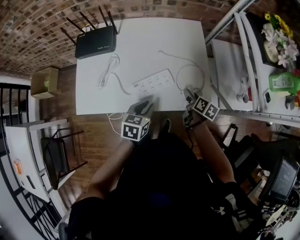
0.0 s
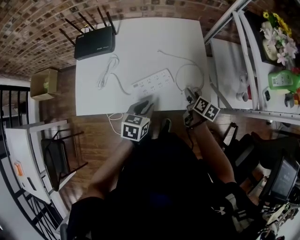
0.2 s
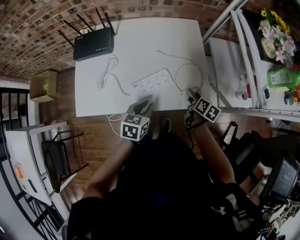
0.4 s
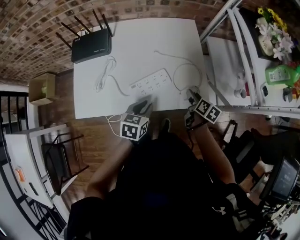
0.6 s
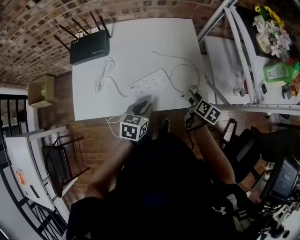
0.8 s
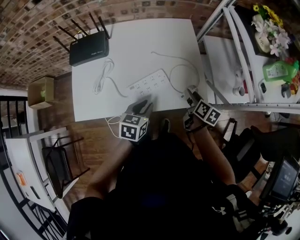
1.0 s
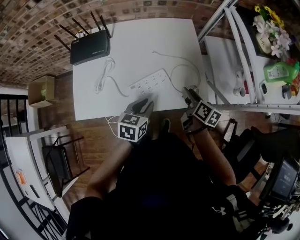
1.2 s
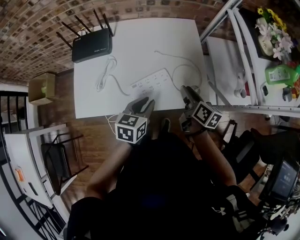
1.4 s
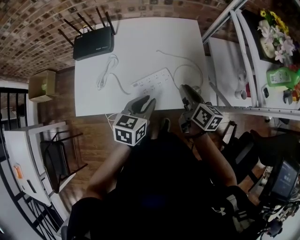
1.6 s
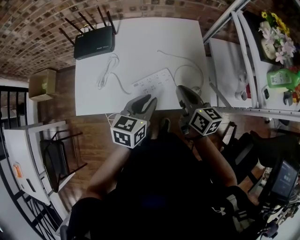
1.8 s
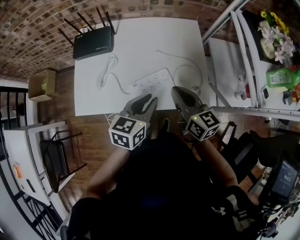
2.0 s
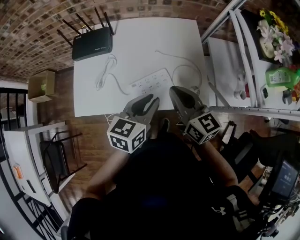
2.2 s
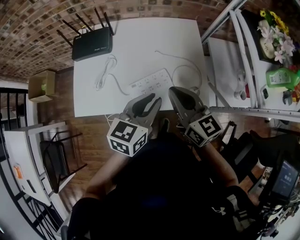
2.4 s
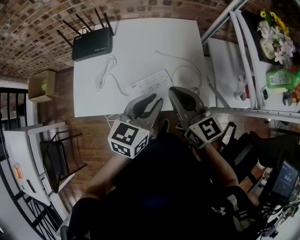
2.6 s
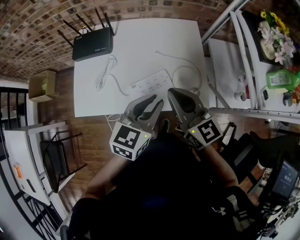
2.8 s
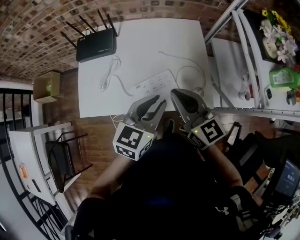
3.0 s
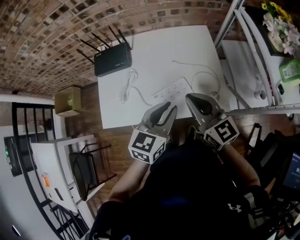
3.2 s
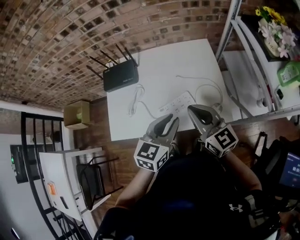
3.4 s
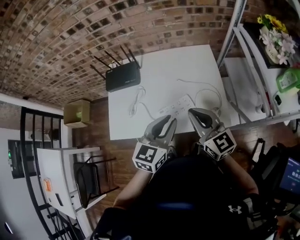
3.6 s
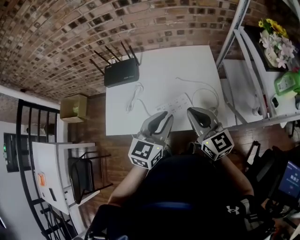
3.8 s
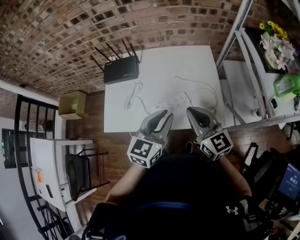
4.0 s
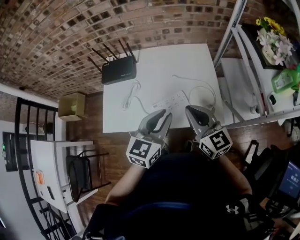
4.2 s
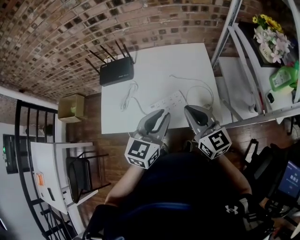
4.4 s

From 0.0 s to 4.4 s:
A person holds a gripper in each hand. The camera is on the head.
From 0.0 s to 1.4 s: The left gripper moves upward, approximately 5 cm; the right gripper goes roughly 10 cm upward, and closes.
From 1.4 s to 3.0 s: The left gripper shifts about 10 cm upward. The right gripper goes about 20 cm upward and to the left, rotates roughly 40 degrees, and closes its fingers.
From 3.0 s to 4.4 s: The grippers stay close to where they were, moving slightly.

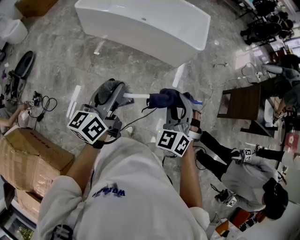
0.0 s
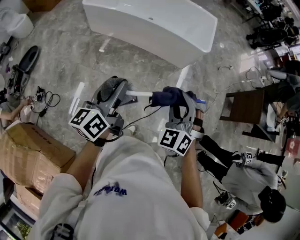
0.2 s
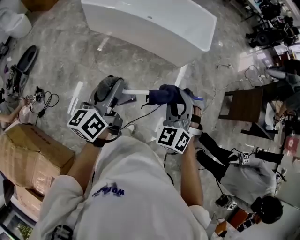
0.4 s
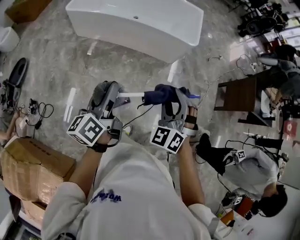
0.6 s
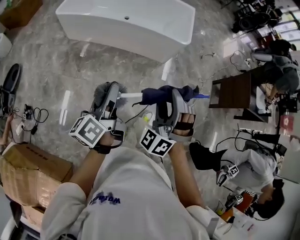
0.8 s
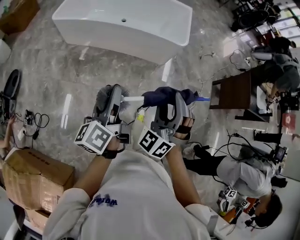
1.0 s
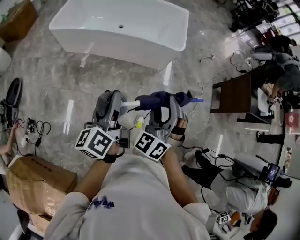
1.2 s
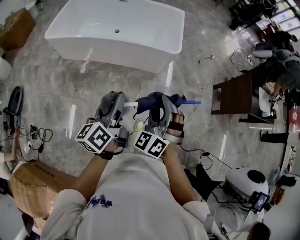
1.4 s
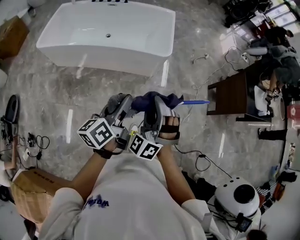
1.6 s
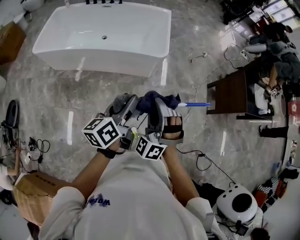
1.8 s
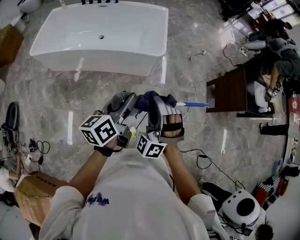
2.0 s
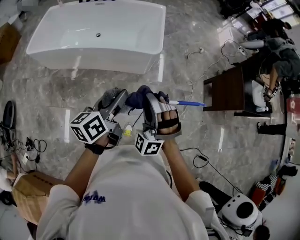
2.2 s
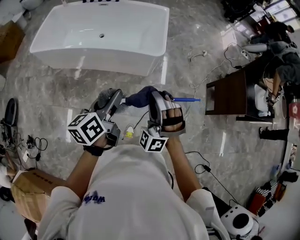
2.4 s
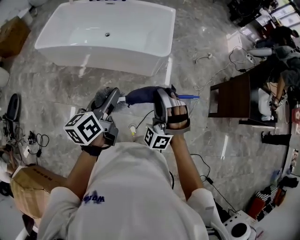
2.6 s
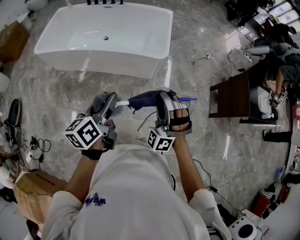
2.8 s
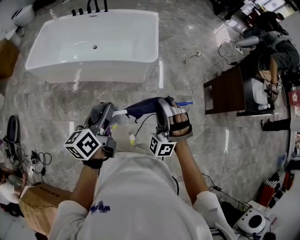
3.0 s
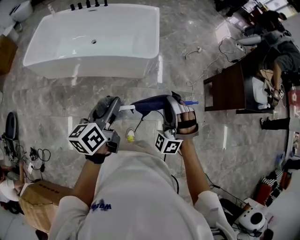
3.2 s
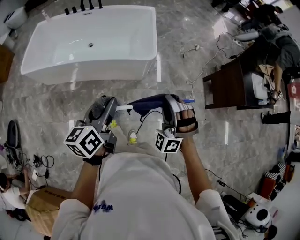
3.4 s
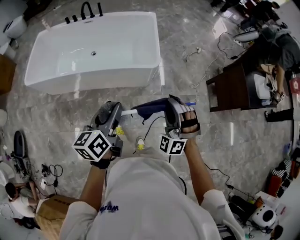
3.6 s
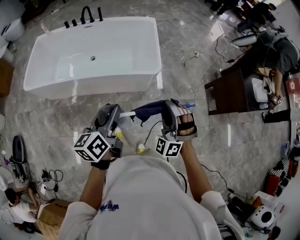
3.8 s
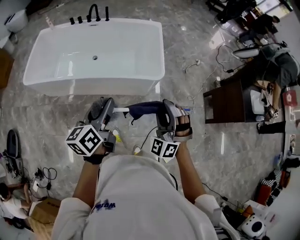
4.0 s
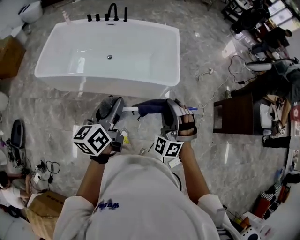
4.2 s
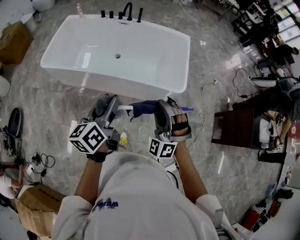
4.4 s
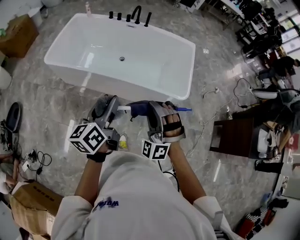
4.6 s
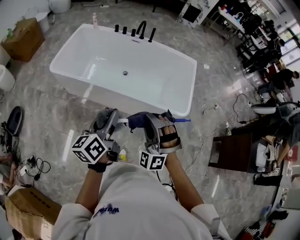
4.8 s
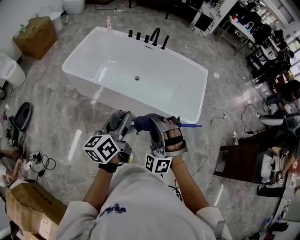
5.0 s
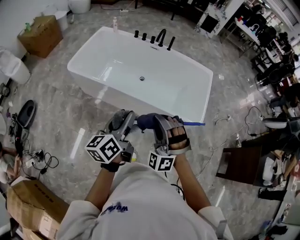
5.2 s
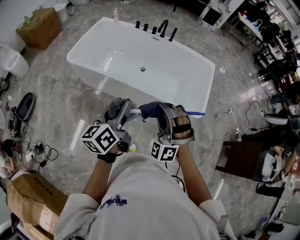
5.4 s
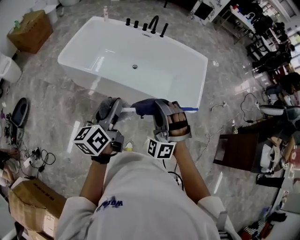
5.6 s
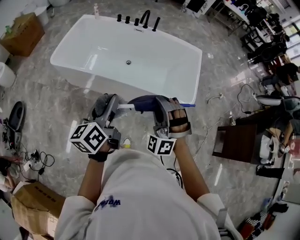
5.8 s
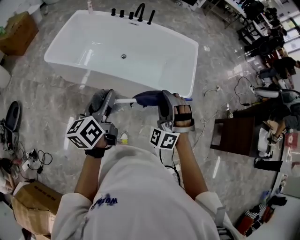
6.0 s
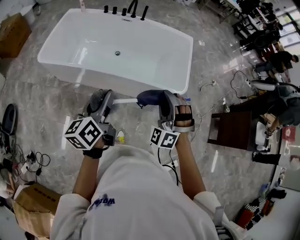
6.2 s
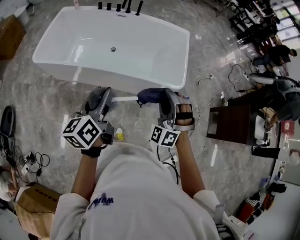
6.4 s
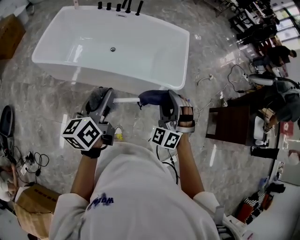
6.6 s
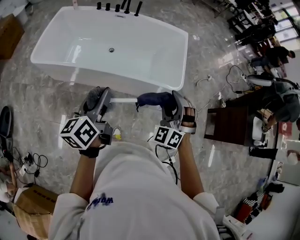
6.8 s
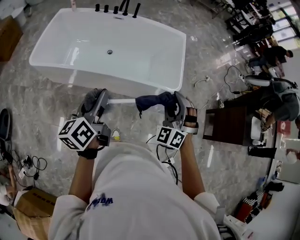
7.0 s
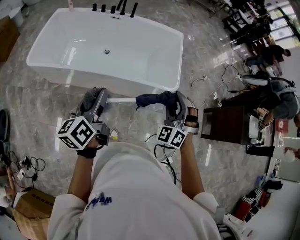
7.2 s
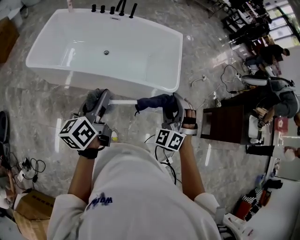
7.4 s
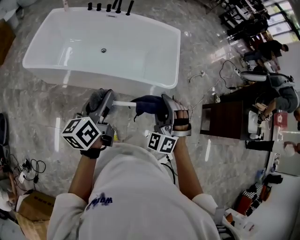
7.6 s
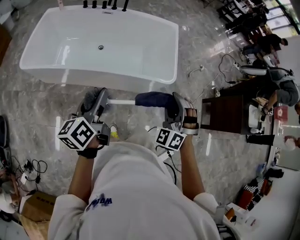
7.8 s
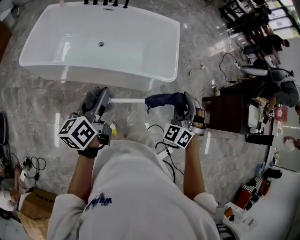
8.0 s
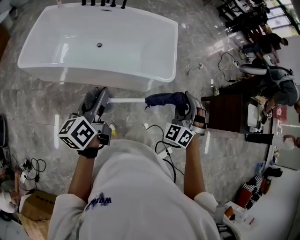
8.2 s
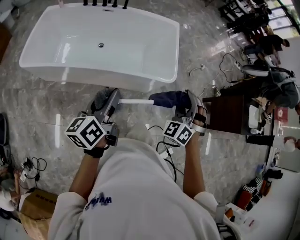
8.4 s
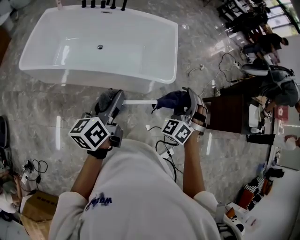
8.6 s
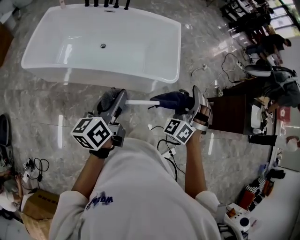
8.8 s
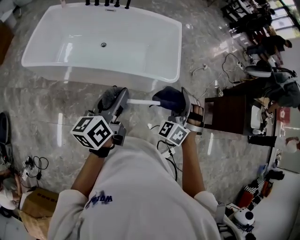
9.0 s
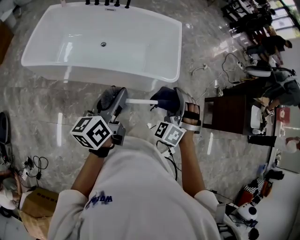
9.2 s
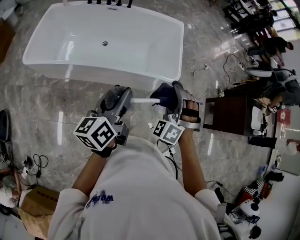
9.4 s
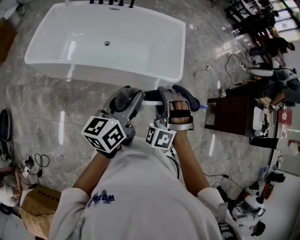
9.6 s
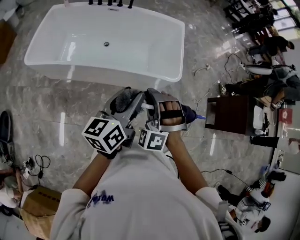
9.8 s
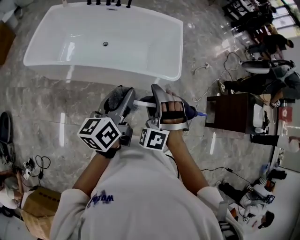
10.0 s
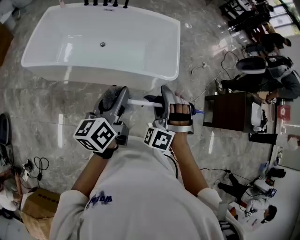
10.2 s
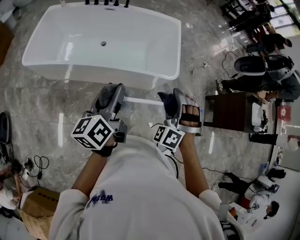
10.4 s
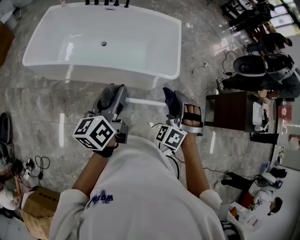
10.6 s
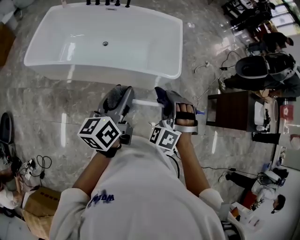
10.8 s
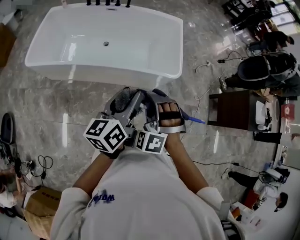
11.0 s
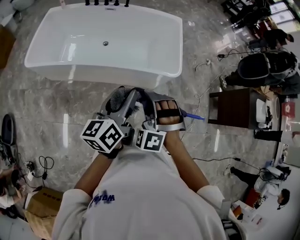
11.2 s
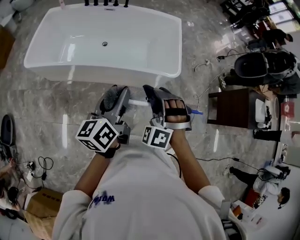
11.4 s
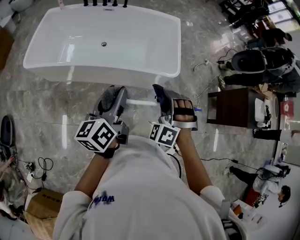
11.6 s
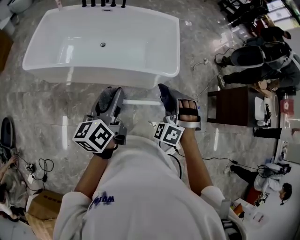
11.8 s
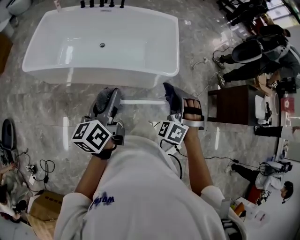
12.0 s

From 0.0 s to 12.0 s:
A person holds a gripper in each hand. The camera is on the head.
From 0.0 s to 1.6 s: The left gripper changes place by approximately 30 cm, and turns by some 20 degrees.
From 1.6 s to 3.0 s: The left gripper changes place by roughly 5 cm.
From 3.0 s to 4.4 s: The left gripper shifts by roughly 25 cm.
From 4.4 s to 6.0 s: The left gripper moves approximately 10 cm.
From 6.0 s to 7.6 s: The left gripper changes place by some 5 cm.
From 7.6 s to 9.0 s: The left gripper ends up roughly 5 cm from where it was.

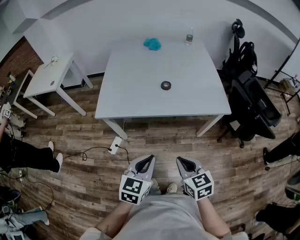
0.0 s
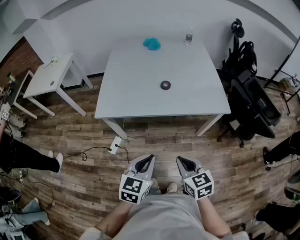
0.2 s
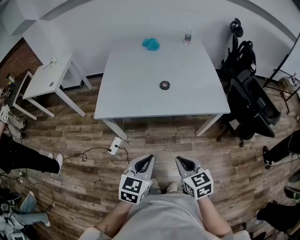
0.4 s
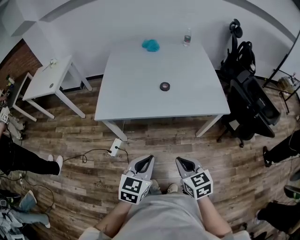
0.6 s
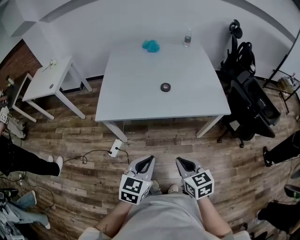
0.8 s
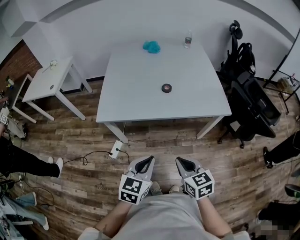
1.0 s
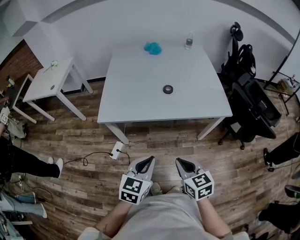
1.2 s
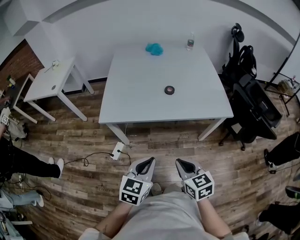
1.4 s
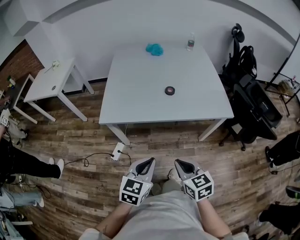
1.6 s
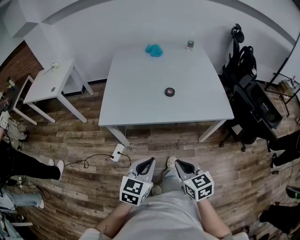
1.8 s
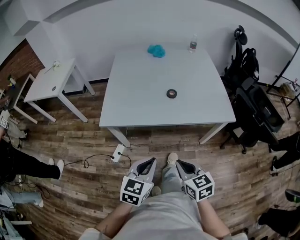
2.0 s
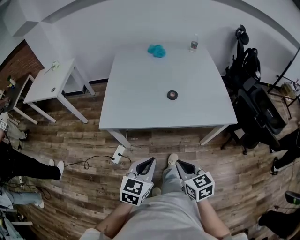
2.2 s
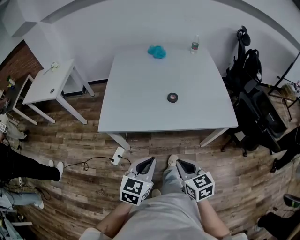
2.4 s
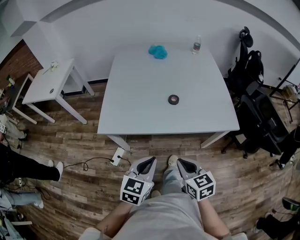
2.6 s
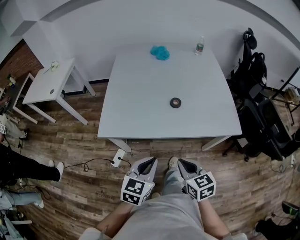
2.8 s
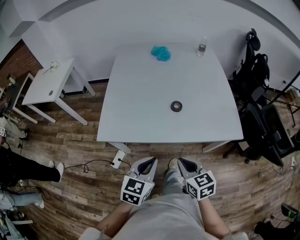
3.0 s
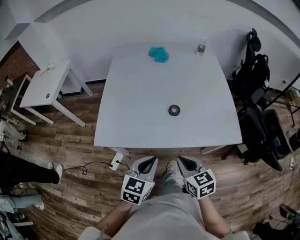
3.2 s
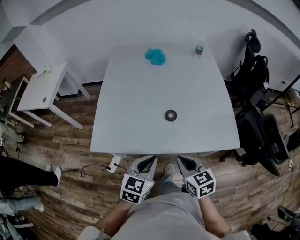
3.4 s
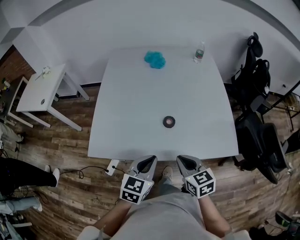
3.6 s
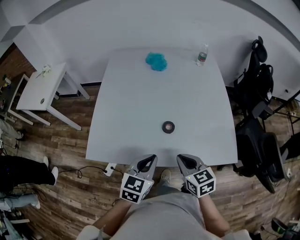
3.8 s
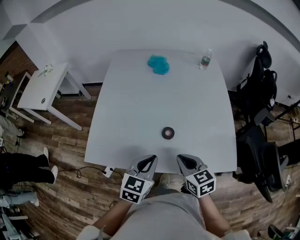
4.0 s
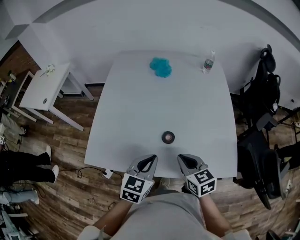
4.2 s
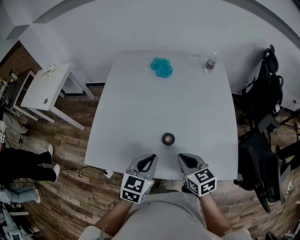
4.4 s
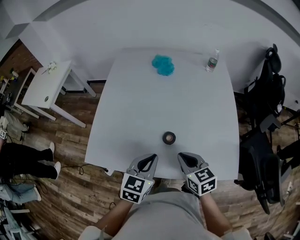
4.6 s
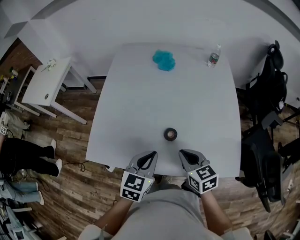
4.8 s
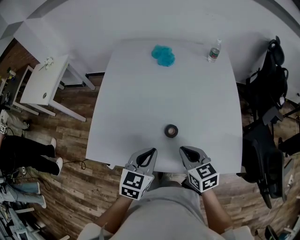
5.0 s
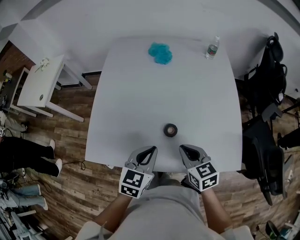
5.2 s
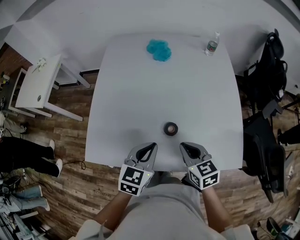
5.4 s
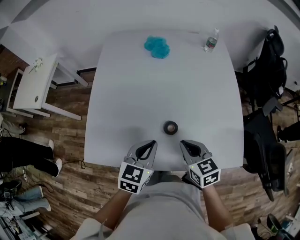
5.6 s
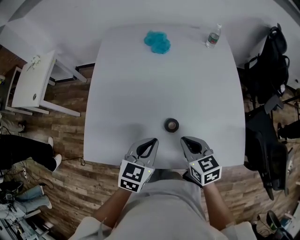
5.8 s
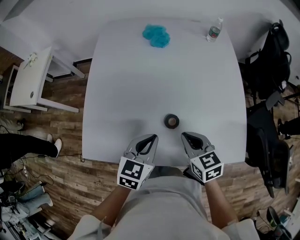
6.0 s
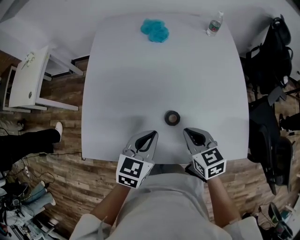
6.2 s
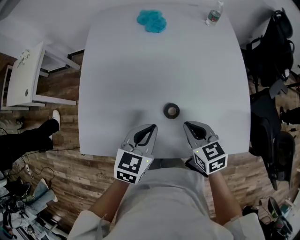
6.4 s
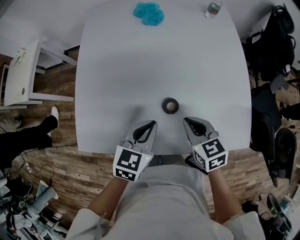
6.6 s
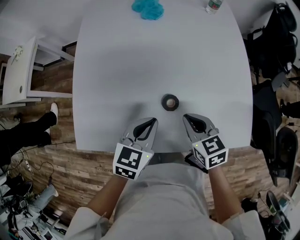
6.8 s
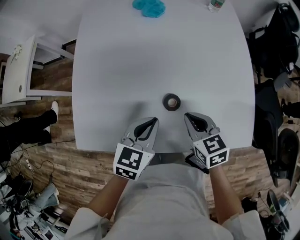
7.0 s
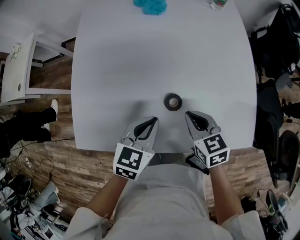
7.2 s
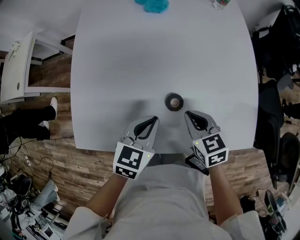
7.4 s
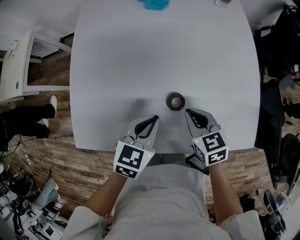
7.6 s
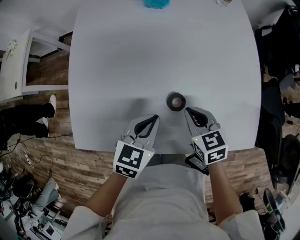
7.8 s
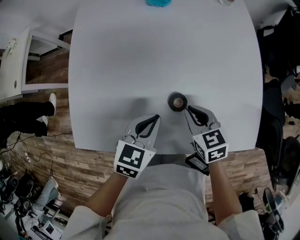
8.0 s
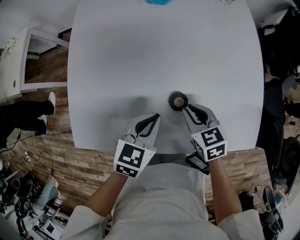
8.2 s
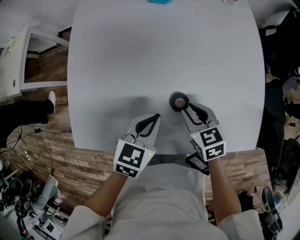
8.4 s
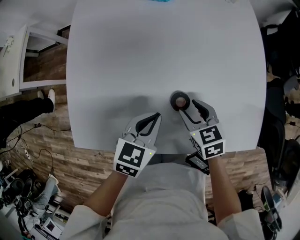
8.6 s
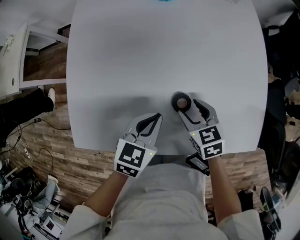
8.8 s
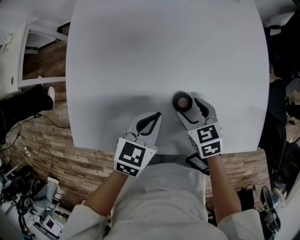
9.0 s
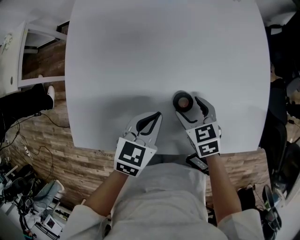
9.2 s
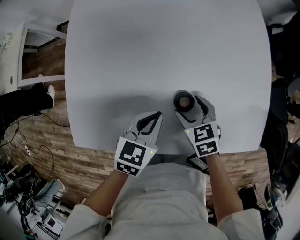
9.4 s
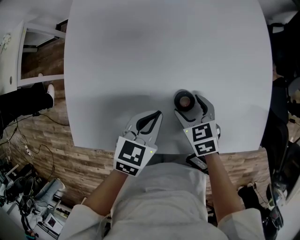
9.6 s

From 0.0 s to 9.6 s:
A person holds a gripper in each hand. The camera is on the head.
From 0.0 s to 1.6 s: The grippers move only a little.
From 1.6 s to 3.2 s: The grippers both shift forward by approximately 20 cm.
From 3.2 s to 4.8 s: Both grippers travel together forward, some 20 cm.
From 4.8 s to 6.4 s: The grippers both shift forward by some 5 cm.
From 6.4 s to 8.0 s: Both grippers move downward, approximately 5 cm.
From 8.0 s to 9.6 s: The right gripper goes roughly 5 cm downward, and opens up.
